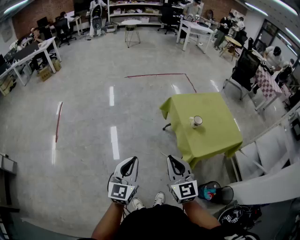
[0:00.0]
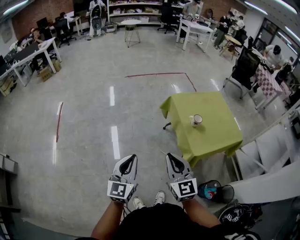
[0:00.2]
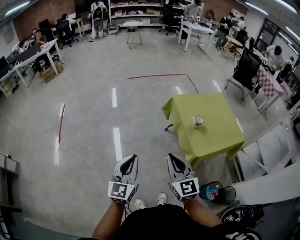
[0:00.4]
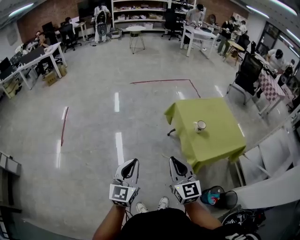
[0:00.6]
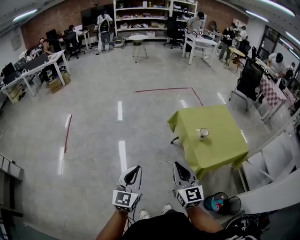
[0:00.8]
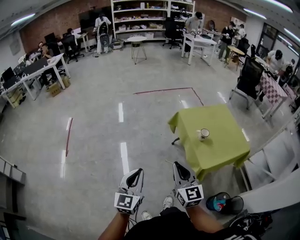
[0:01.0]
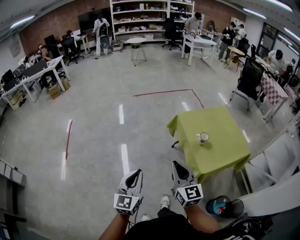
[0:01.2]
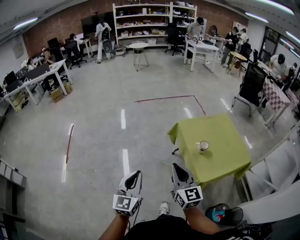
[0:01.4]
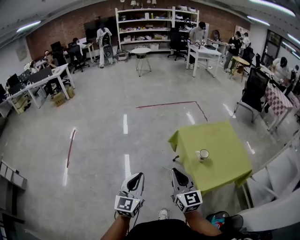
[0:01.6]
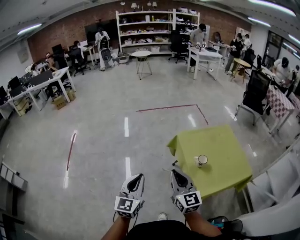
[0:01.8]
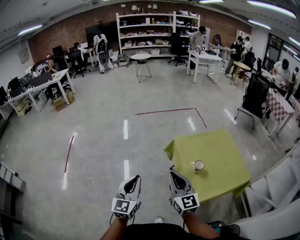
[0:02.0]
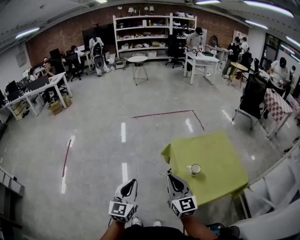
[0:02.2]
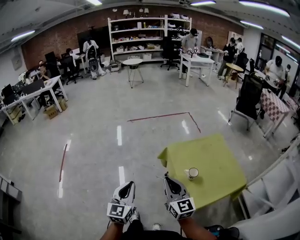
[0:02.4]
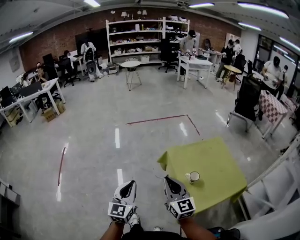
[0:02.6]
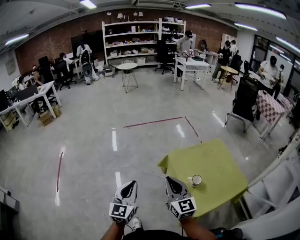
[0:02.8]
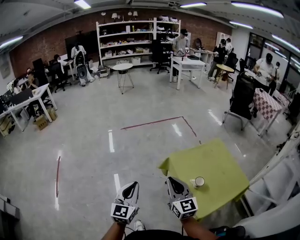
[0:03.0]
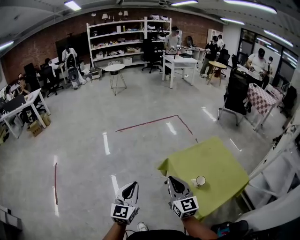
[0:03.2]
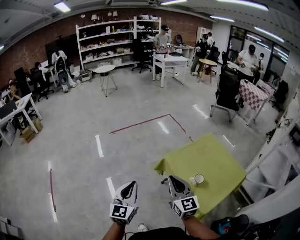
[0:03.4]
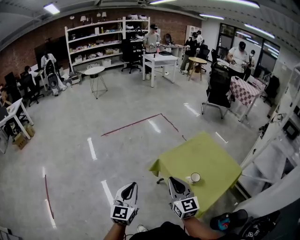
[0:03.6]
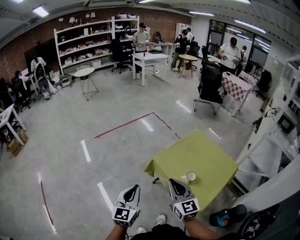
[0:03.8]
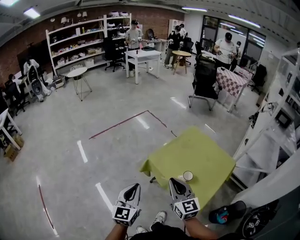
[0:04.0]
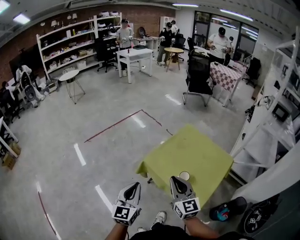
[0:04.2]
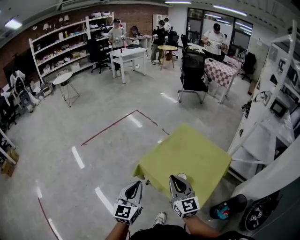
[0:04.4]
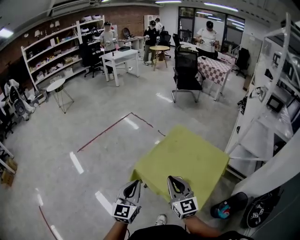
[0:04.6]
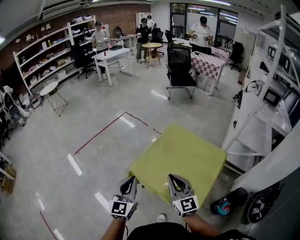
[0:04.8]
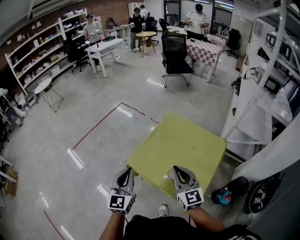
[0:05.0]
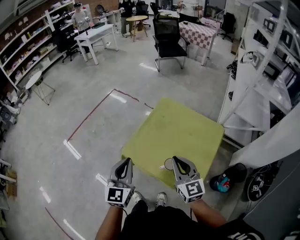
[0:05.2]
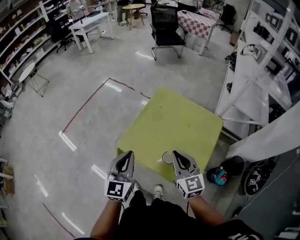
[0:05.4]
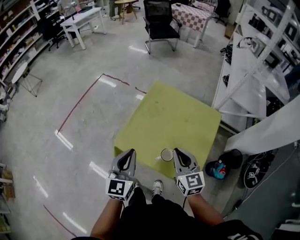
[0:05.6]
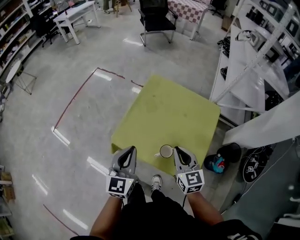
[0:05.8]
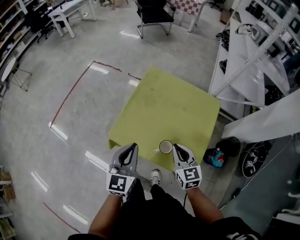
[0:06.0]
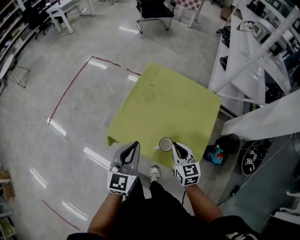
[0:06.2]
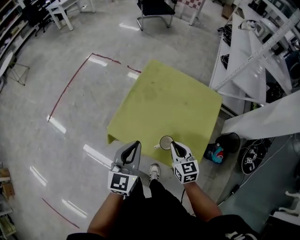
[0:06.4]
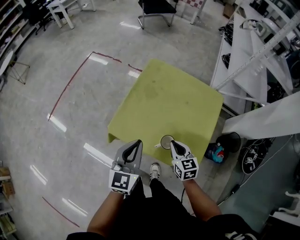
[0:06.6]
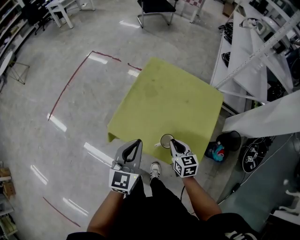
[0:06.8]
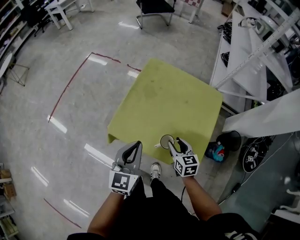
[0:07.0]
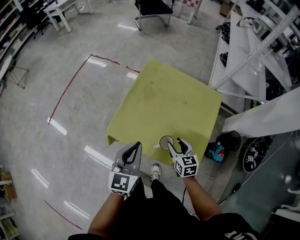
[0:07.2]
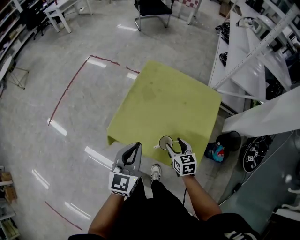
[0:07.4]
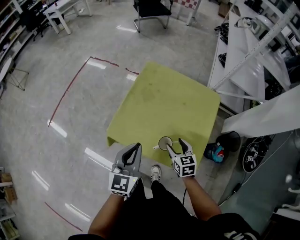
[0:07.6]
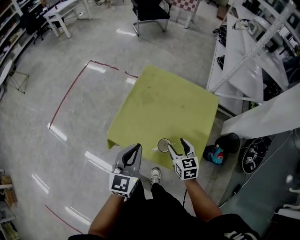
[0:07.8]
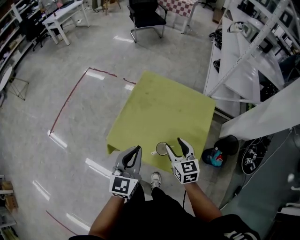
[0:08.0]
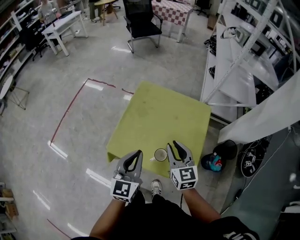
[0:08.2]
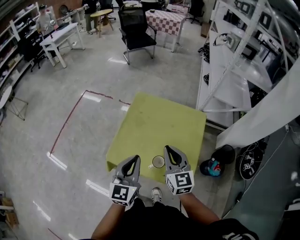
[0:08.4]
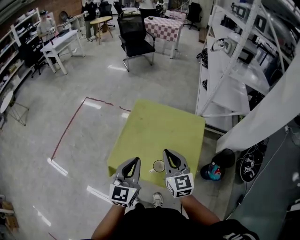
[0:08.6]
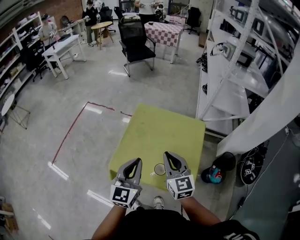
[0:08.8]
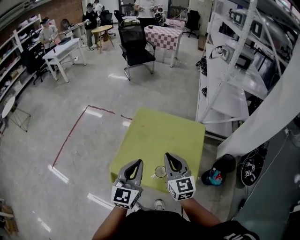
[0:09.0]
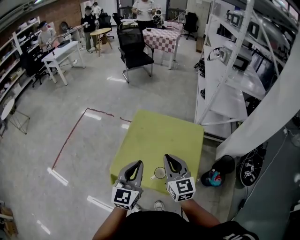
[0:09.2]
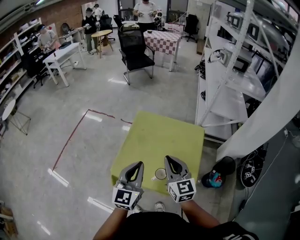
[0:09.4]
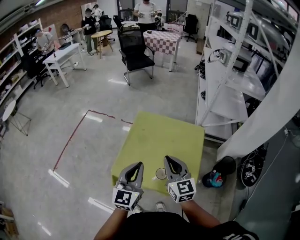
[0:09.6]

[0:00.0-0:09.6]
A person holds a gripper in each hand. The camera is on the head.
0:00.0 to 0:01.6: Both grippers move forward, about 10 cm.
0:01.6 to 0:03.2: The grippers both shift forward by about 20 cm.
0:03.2 to 0:04.8: The right gripper ends up about 20 cm from where it was, and turns by about 30 degrees; the left gripper ends up some 25 cm from where it was, and turns by some 30 degrees.
0:04.8 to 0:06.4: The left gripper is displaced downward, forward and to the right by roughly 15 cm, and rotates roughly 20 degrees, while the right gripper moves downward, roughly 20 cm, and changes its angle by about 30 degrees.
0:06.4 to 0:08.0: The right gripper shifts approximately 5 cm upward, and opens.
0:08.0 to 0:09.6: The right gripper moves upward, some 15 cm, turns by approximately 20 degrees, and closes its fingers; the left gripper is displaced upward by roughly 10 cm.

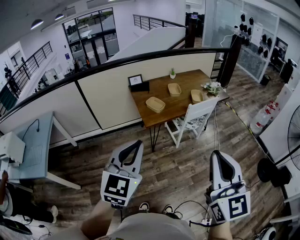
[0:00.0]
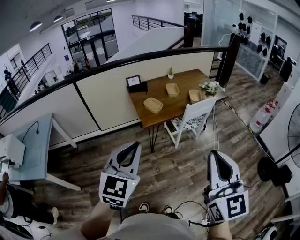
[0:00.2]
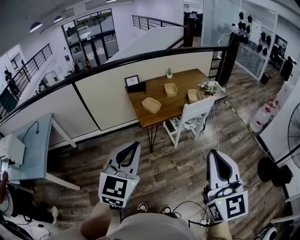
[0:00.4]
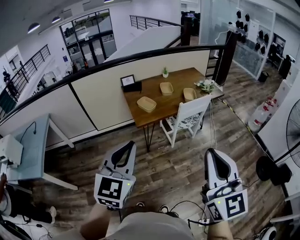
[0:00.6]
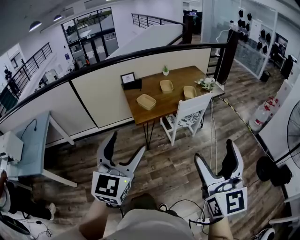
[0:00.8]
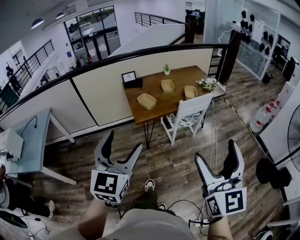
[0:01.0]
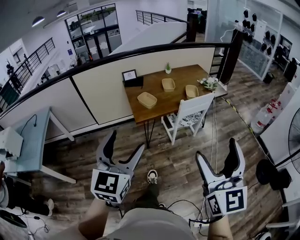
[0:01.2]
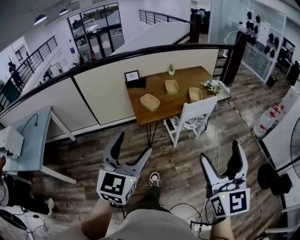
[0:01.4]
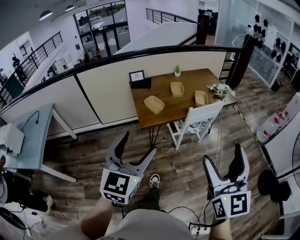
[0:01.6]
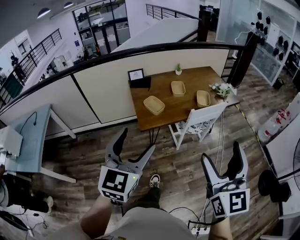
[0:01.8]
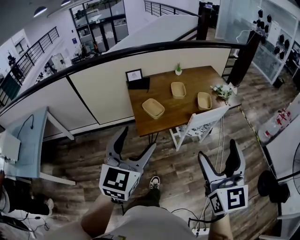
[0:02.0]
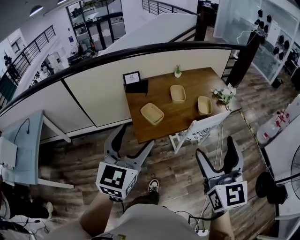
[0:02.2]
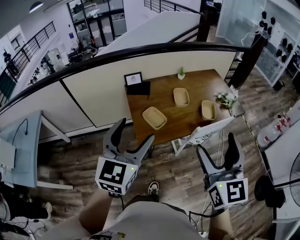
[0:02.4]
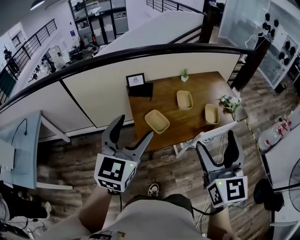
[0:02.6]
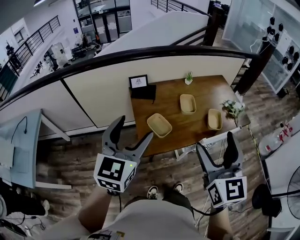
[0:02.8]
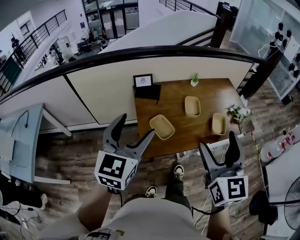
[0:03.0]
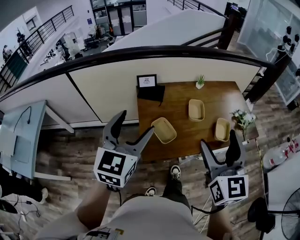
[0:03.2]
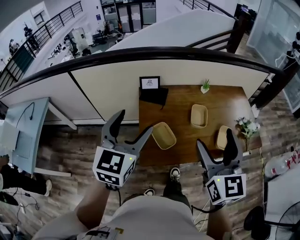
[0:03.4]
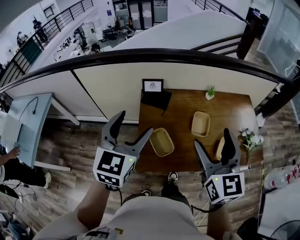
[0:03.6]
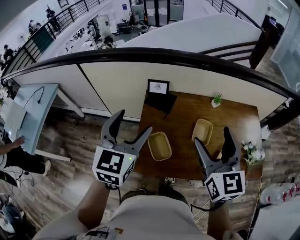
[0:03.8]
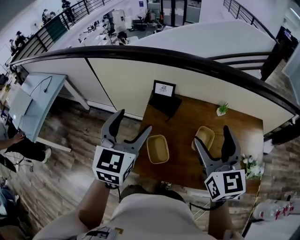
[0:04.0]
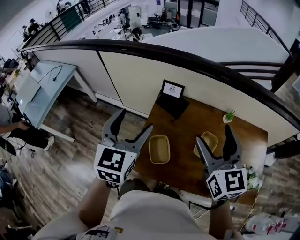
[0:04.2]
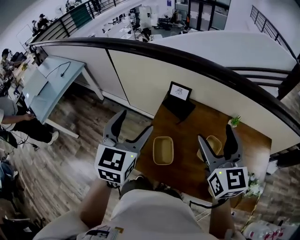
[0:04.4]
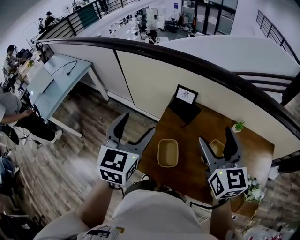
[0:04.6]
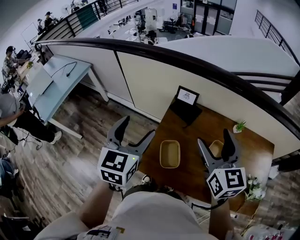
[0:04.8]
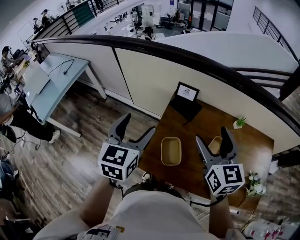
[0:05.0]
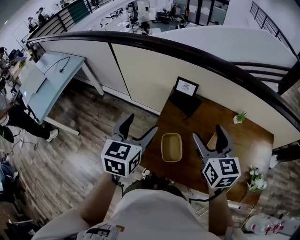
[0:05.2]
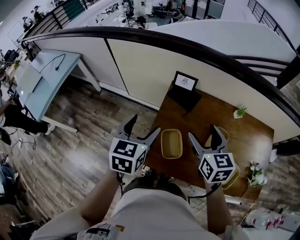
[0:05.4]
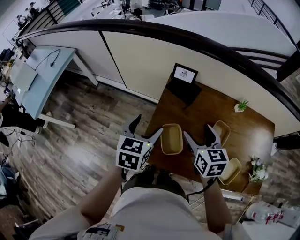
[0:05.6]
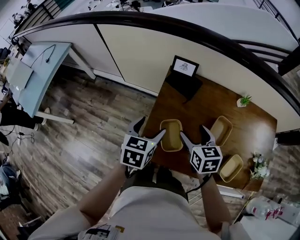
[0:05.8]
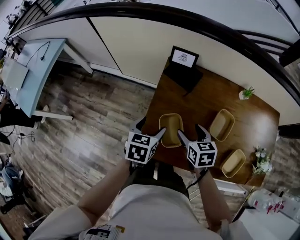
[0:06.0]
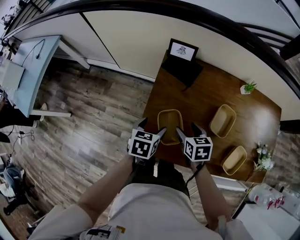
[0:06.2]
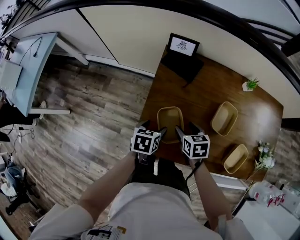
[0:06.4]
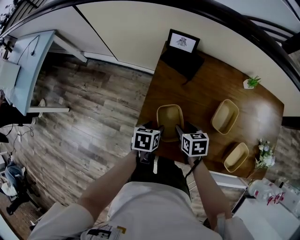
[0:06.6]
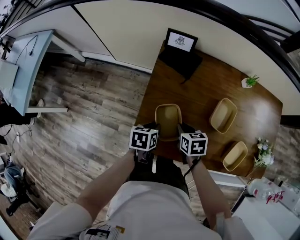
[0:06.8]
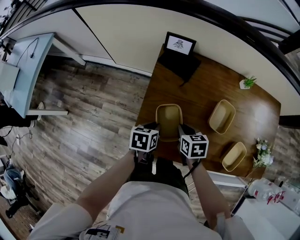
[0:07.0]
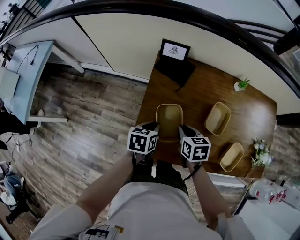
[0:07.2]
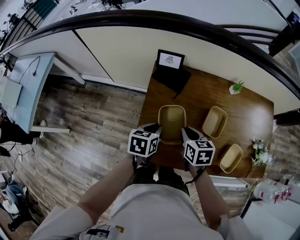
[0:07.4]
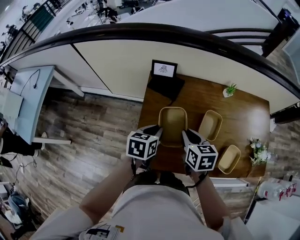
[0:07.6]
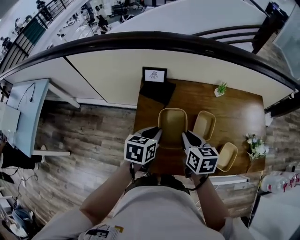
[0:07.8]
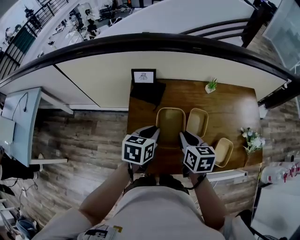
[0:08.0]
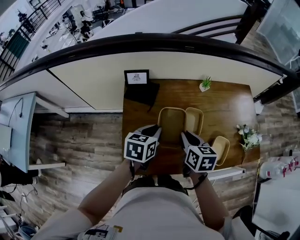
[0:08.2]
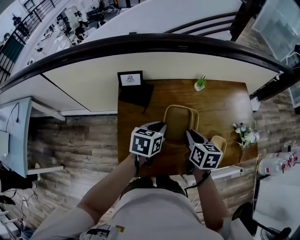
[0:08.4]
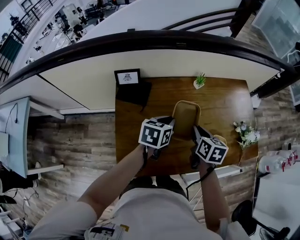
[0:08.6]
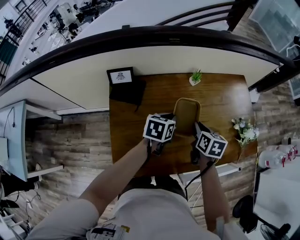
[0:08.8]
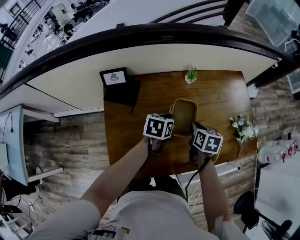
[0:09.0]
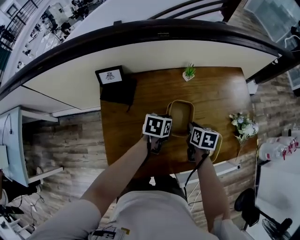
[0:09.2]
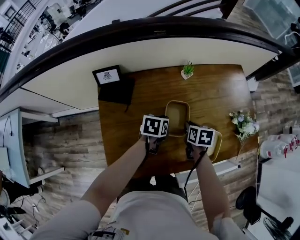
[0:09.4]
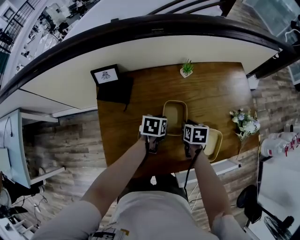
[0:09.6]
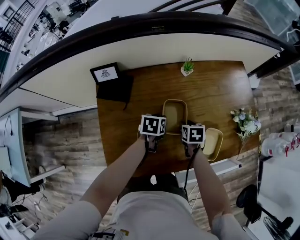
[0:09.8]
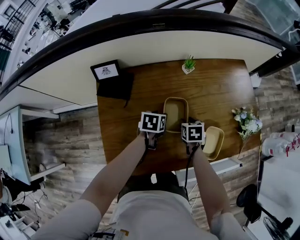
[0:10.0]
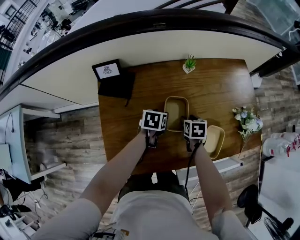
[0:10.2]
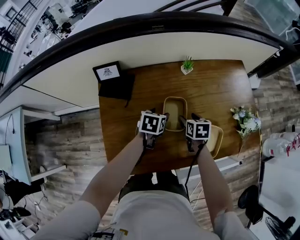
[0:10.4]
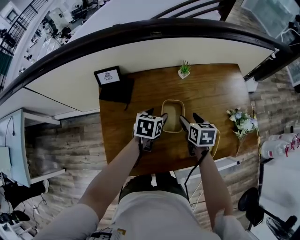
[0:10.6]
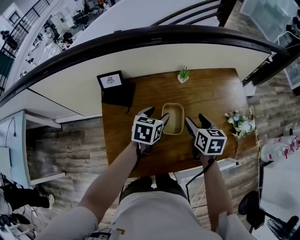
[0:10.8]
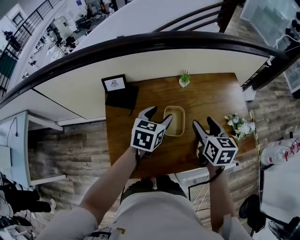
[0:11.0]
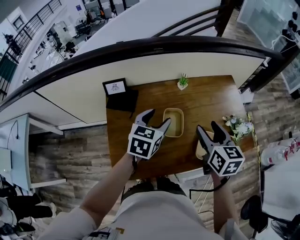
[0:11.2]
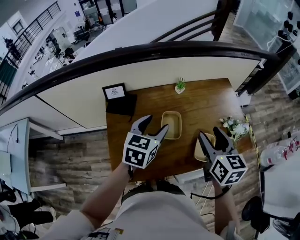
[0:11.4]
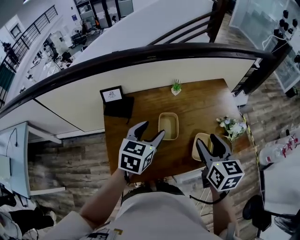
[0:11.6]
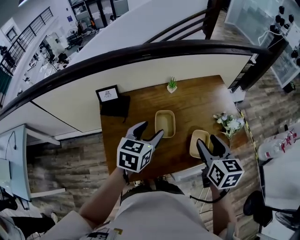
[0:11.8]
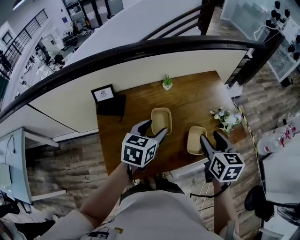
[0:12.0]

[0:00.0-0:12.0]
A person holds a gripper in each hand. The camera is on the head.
0:00.0 to 0:01.6: Both grippers move forward and to the right, approximately 15 cm. The right gripper opens its fingers. The left gripper opens up.
0:01.6 to 0:03.0: Both grippers move forward, approximately 40 cm.
0:03.0 to 0:04.4: The left gripper shifts by roughly 15 cm, and turns by about 40 degrees. Meanwhile the right gripper moves roughly 30 cm, and changes its angle by roughly 40 degrees.
0:04.4 to 0:06.0: The two grippers go approximately 30 cm downward. The left gripper tilts its fingers approximately 30 degrees downward. The right gripper tips its fingers downward by about 40 degrees.
0:06.0 to 0:07.6: The left gripper moves to the right, roughly 5 cm, goes downward and returns, roughly 15 cm each way, and closes; the right gripper moves approximately 10 cm downward and comes back, and closes its fingers.
0:07.6 to 0:09.0: The right gripper ends up approximately 25 cm from where it was, and turns by roughly 30 degrees. The left gripper shifts by about 25 cm, and rotates approximately 20 degrees.
0:09.0 to 0:10.4: Both grippers travel together downward, roughly 5 cm. The right gripper opens its fingers. The left gripper opens.
0:10.4 to 0:12.0: The left gripper is displaced upward by roughly 25 cm, and changes its angle by some 30 degrees. Meanwhile the right gripper shifts roughly 35 cm upward, backward and to the right, and changes its angle by about 30 degrees.

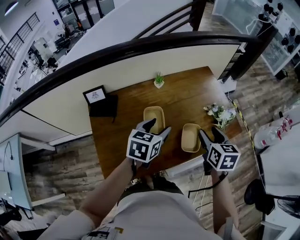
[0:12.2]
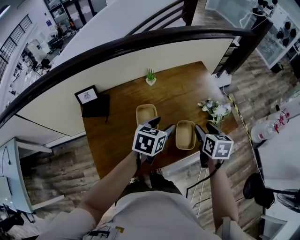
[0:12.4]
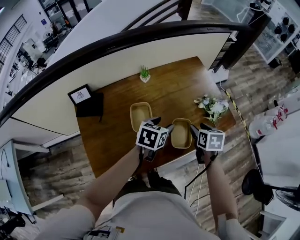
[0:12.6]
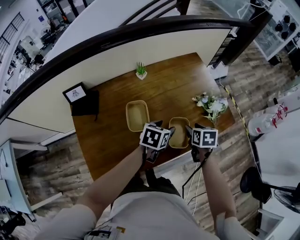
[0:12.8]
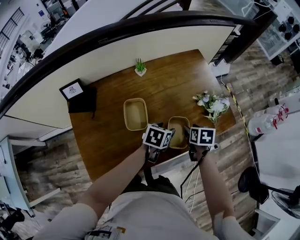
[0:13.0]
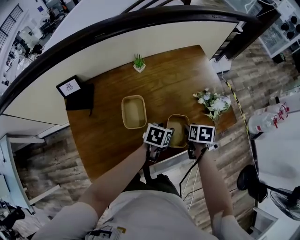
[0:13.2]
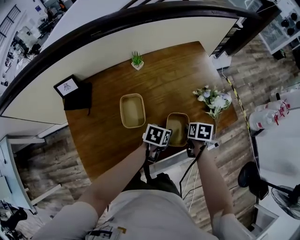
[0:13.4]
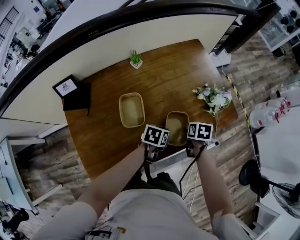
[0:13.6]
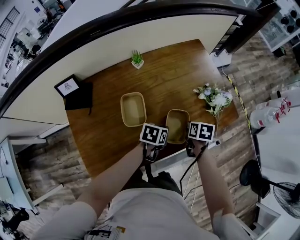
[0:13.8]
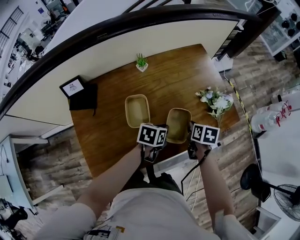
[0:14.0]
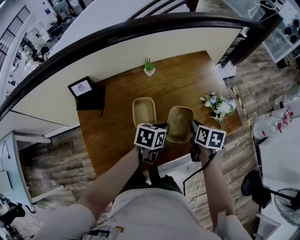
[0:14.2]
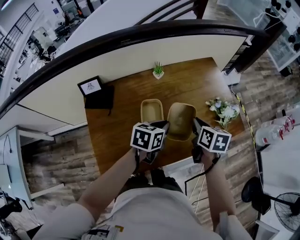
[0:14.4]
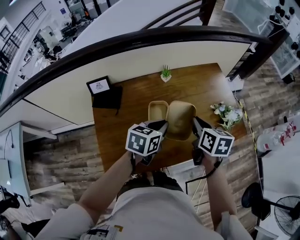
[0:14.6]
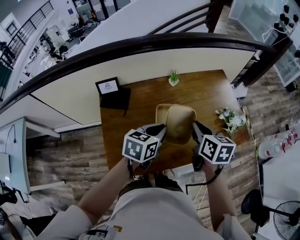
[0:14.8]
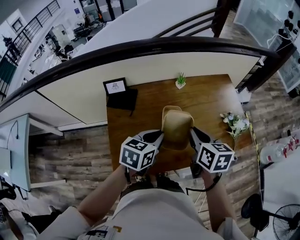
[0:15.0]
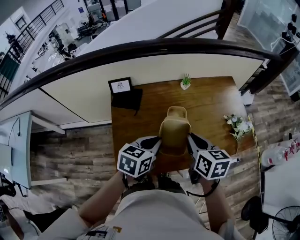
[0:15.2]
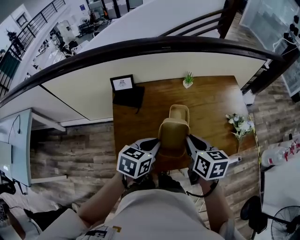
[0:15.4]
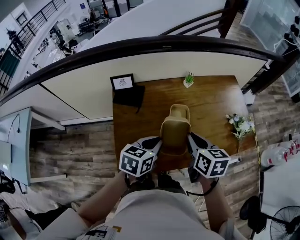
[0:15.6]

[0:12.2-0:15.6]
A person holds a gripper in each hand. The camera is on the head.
0:12.2 to 0:13.8: The right gripper moves downward, approximately 25 cm, turns by about 30 degrees, and closes, while the left gripper travels downward and to the right by about 25 cm, changes its angle by some 30 degrees, and closes its fingers.
0:13.8 to 0:15.6: The right gripper moves approximately 35 cm, and rotates roughly 40 degrees, while the left gripper moves about 35 cm, and changes its angle by approximately 30 degrees.
